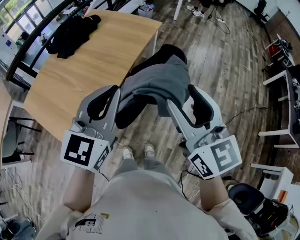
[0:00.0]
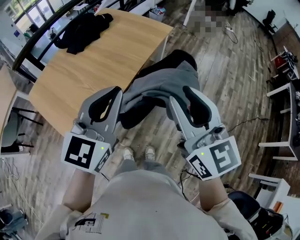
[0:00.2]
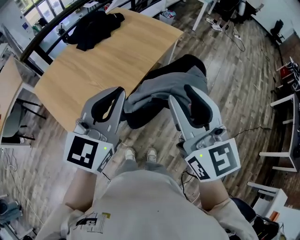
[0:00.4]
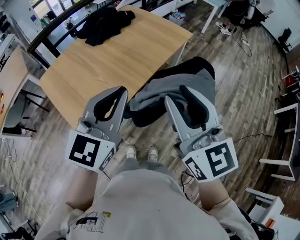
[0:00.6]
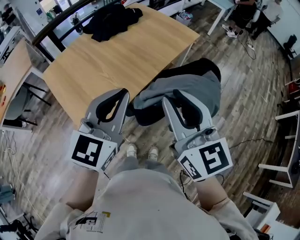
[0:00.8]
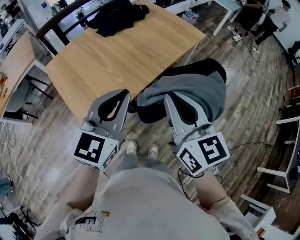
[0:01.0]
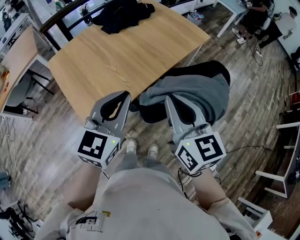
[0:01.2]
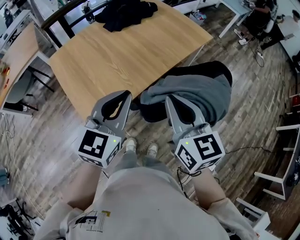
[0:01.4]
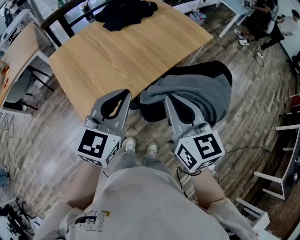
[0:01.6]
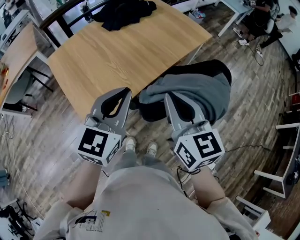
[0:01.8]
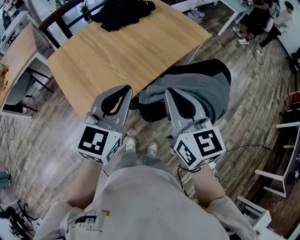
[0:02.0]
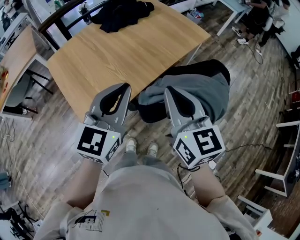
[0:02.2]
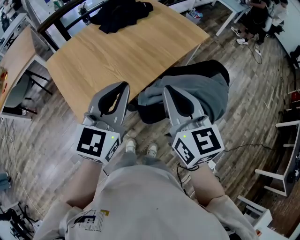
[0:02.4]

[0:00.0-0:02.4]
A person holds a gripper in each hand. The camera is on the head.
0:00.0 to 0:01.2: Both grippers move to the left, approximately 15 cm. The right gripper turns by about 20 degrees, and closes its fingers.
0:01.2 to 0:02.4: The grippers make only small movements.

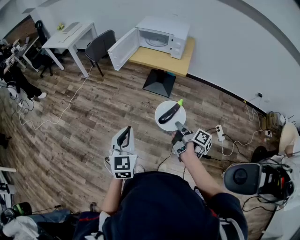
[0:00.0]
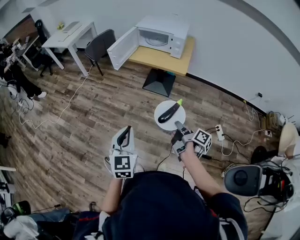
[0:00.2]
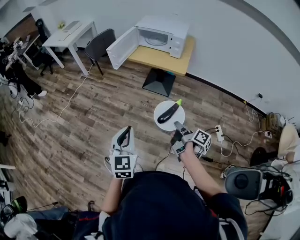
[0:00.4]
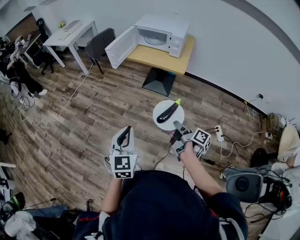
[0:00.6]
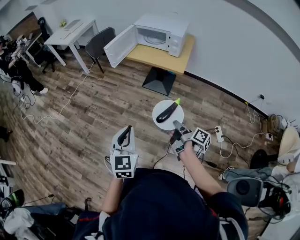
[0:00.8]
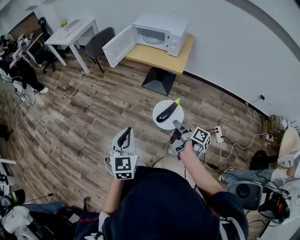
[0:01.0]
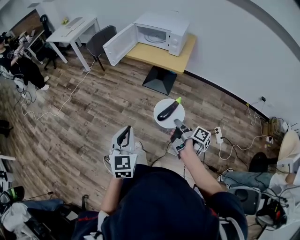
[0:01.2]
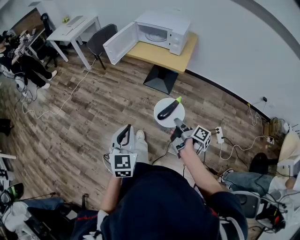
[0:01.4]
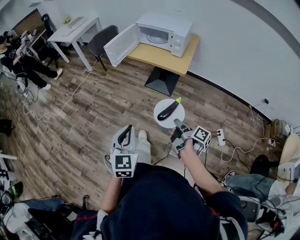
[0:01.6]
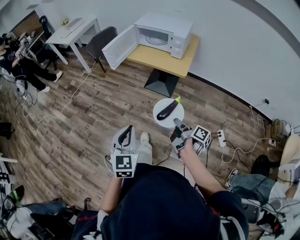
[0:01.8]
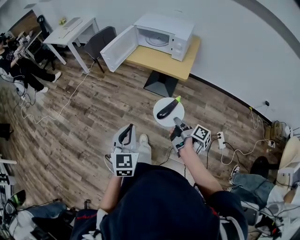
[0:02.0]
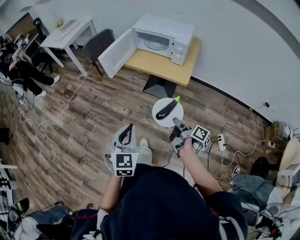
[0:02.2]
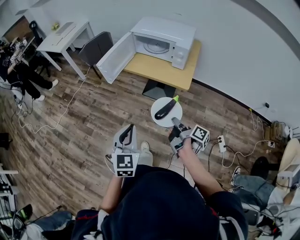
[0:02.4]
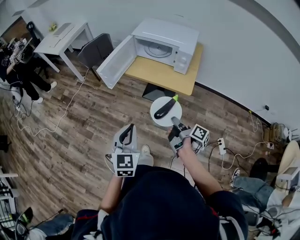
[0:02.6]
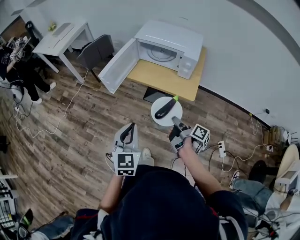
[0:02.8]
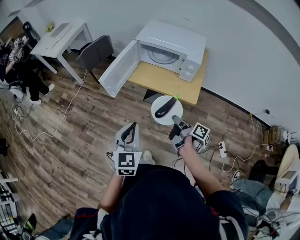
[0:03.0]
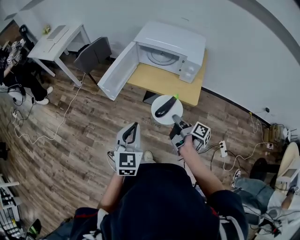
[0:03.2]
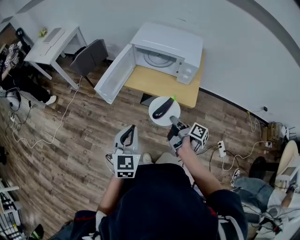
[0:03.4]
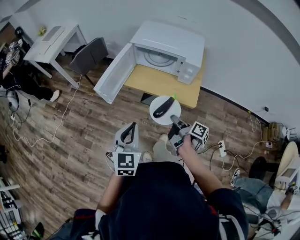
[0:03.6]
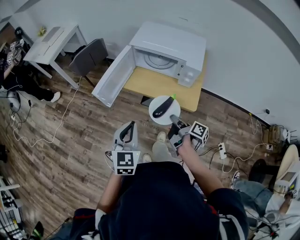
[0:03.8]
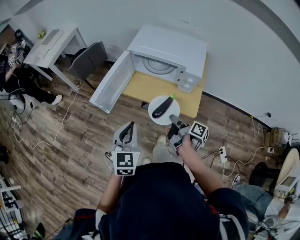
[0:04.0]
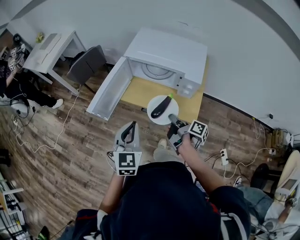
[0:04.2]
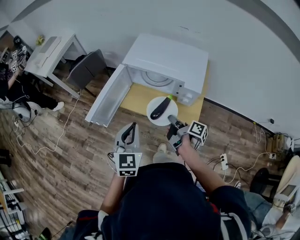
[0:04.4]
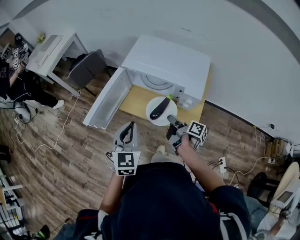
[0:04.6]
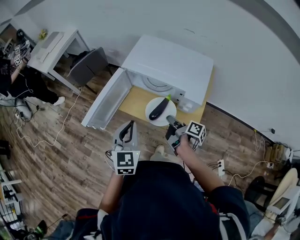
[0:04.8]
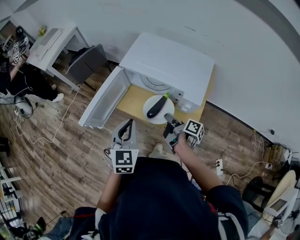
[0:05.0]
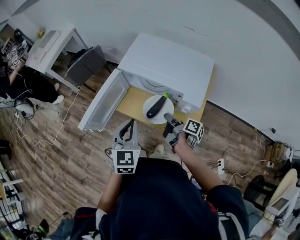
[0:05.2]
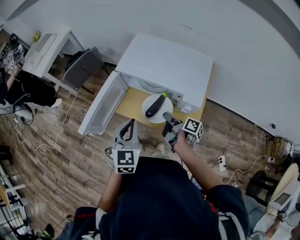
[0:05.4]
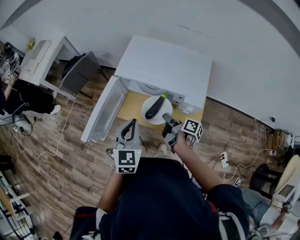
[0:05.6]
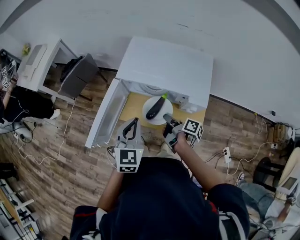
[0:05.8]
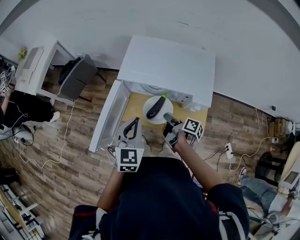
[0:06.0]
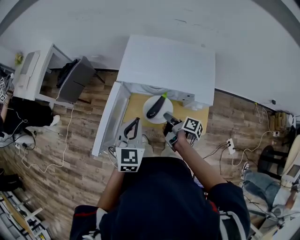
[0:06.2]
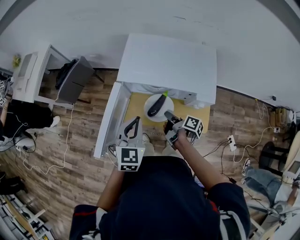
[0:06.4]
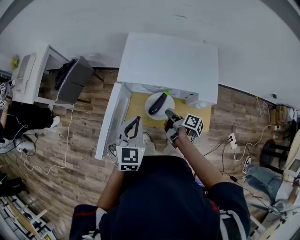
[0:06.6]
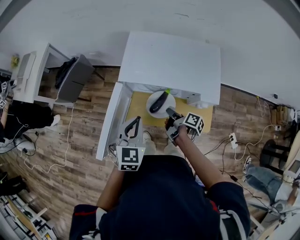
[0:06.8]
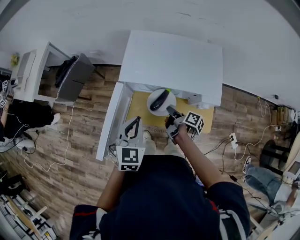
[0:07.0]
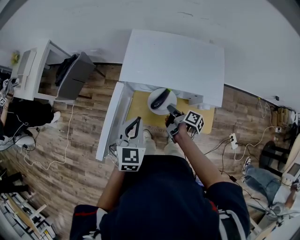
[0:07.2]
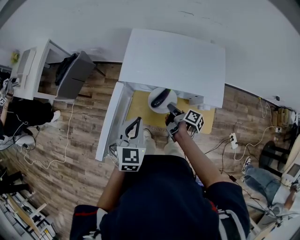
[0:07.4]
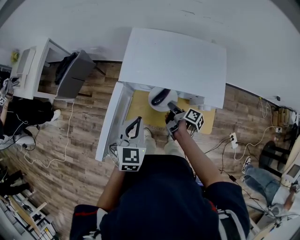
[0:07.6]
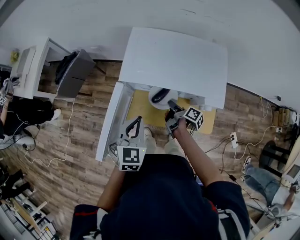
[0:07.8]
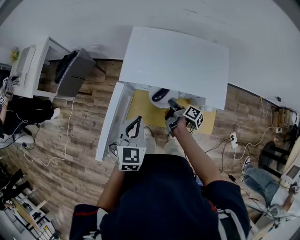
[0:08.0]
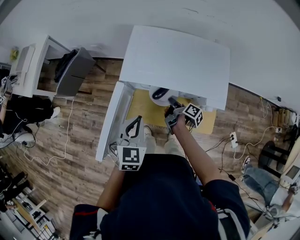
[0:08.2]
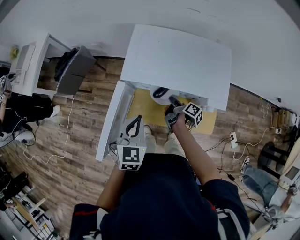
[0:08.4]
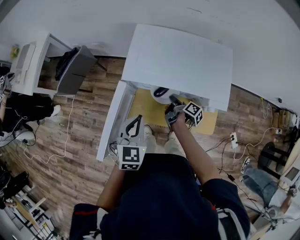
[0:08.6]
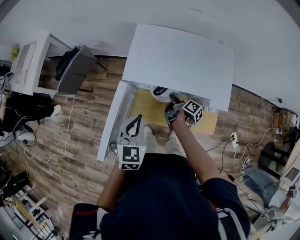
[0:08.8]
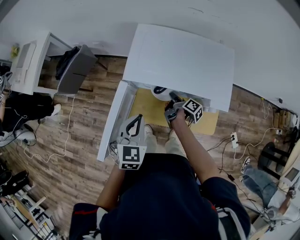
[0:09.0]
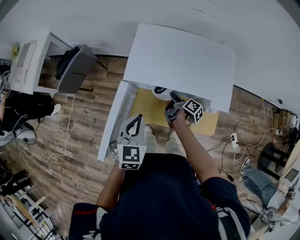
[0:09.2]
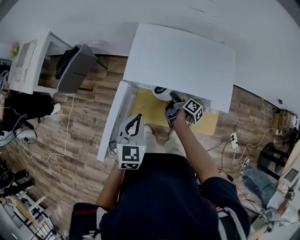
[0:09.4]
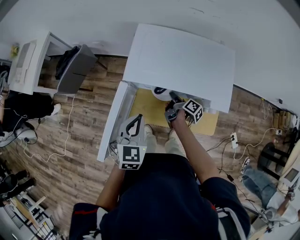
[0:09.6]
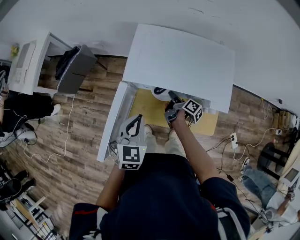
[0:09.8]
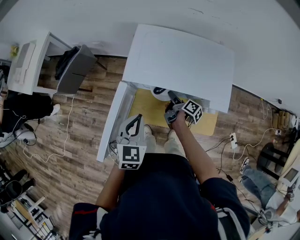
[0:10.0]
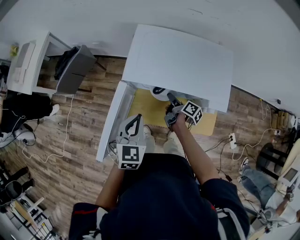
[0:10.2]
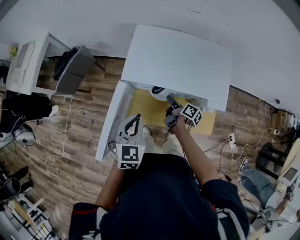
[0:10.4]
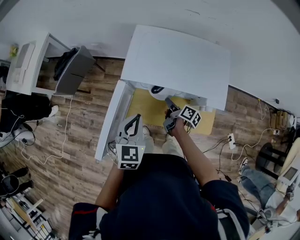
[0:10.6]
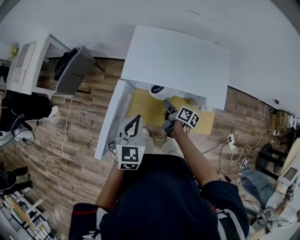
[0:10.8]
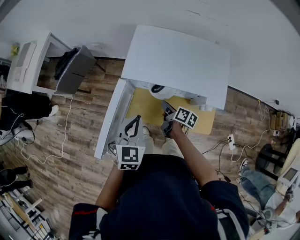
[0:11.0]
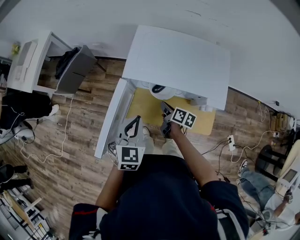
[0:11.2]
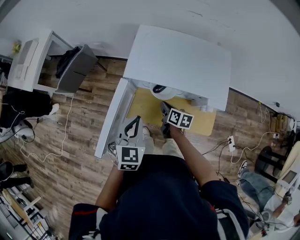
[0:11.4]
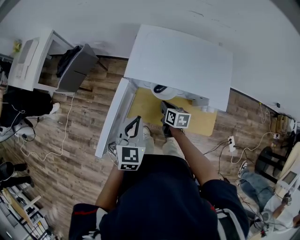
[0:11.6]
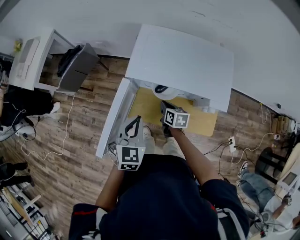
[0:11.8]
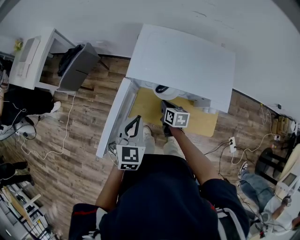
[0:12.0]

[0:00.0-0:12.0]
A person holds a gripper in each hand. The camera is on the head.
0:00.0 to 0:01.6: The left gripper ends up roughly 10 cm from where it was.
0:01.6 to 0:03.0: The left gripper ends up approximately 35 cm from where it was.
0:03.0 to 0:04.4: The left gripper shifts by about 20 cm.
0:04.4 to 0:06.0: The left gripper changes place by some 15 cm.
0:06.0 to 0:07.6: The left gripper shifts by roughly 5 cm.

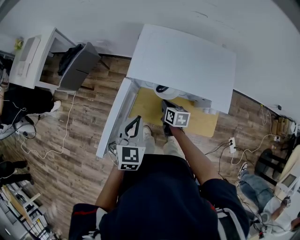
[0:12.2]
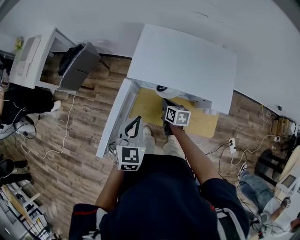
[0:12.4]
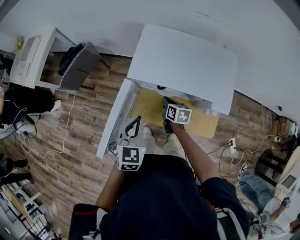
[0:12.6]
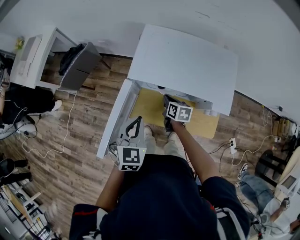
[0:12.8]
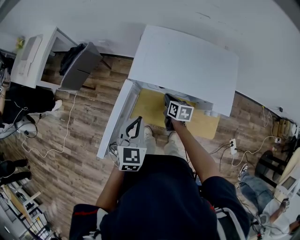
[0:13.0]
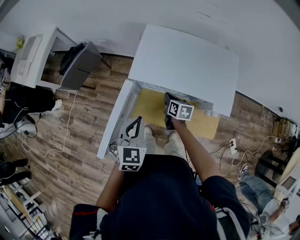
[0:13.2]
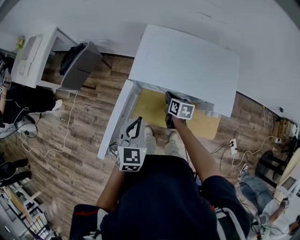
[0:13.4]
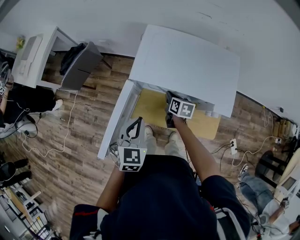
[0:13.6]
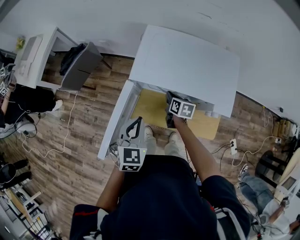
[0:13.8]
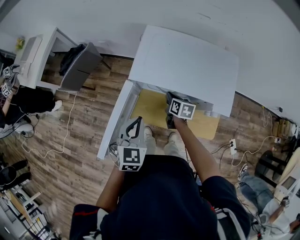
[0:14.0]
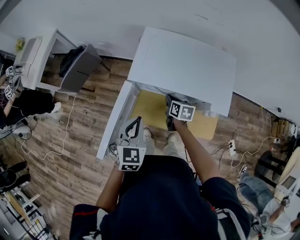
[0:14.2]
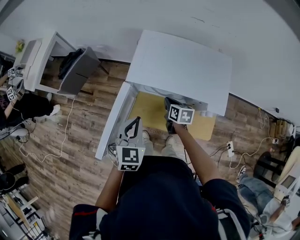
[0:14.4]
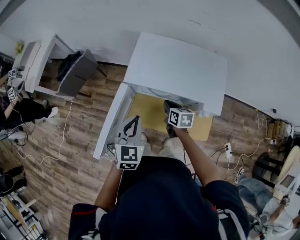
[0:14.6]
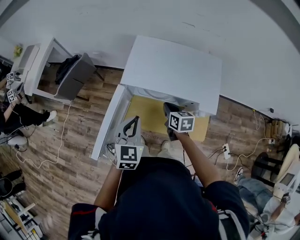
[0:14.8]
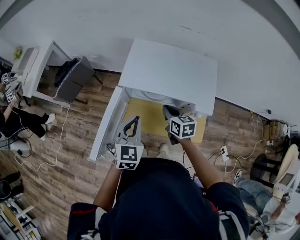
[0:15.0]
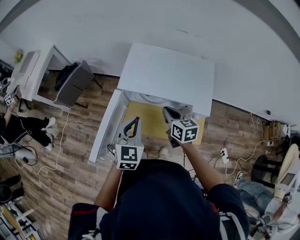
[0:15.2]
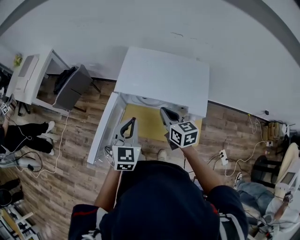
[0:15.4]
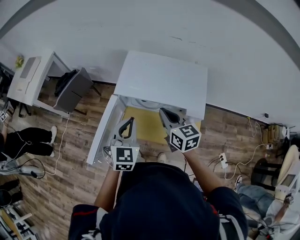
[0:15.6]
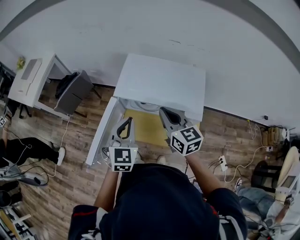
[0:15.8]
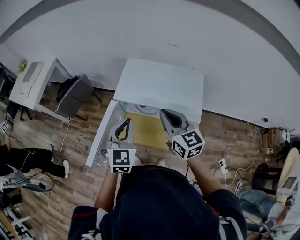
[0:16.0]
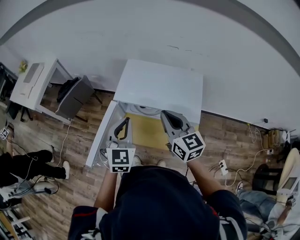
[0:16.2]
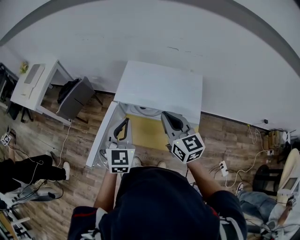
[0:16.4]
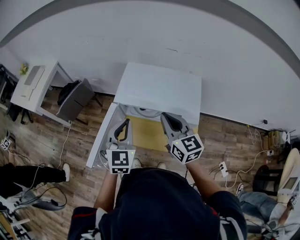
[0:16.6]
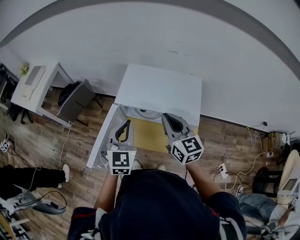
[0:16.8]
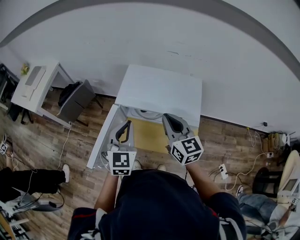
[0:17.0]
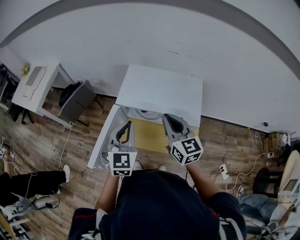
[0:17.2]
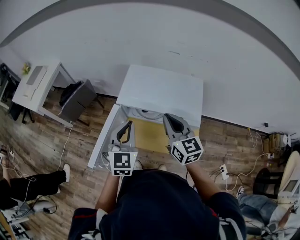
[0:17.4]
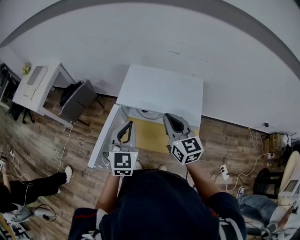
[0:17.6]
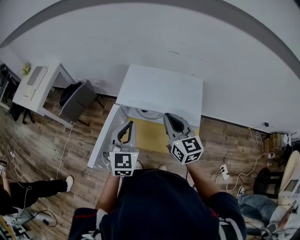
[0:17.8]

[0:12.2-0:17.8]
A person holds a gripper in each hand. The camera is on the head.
0:13.6 to 0:15.0: The left gripper moves some 5 cm.
0:15.0 to 0:16.4: The left gripper moves upward, approximately 10 cm.

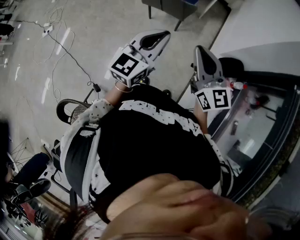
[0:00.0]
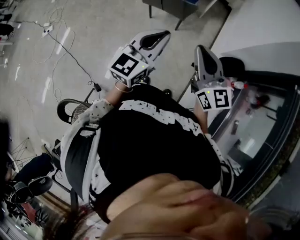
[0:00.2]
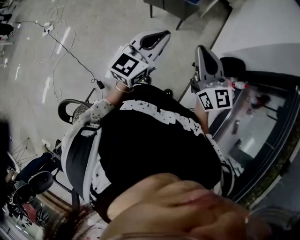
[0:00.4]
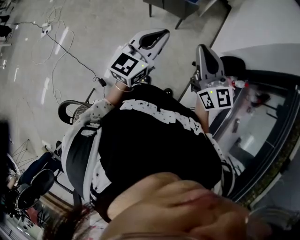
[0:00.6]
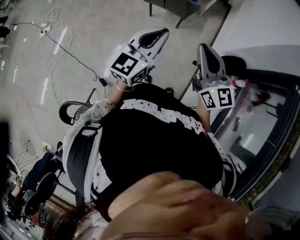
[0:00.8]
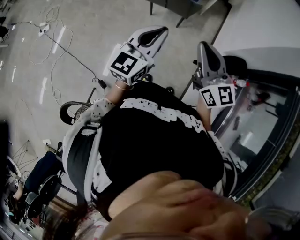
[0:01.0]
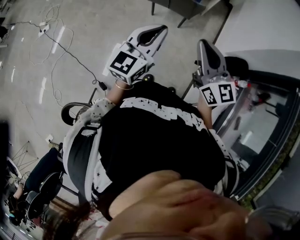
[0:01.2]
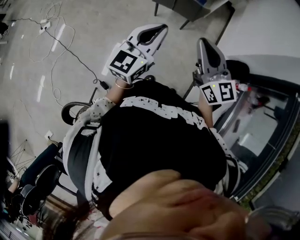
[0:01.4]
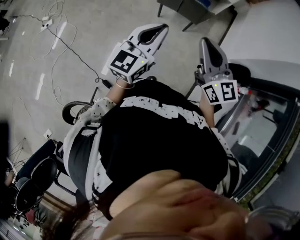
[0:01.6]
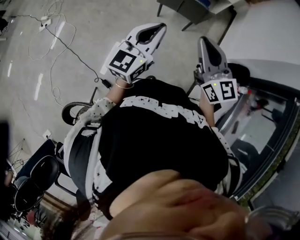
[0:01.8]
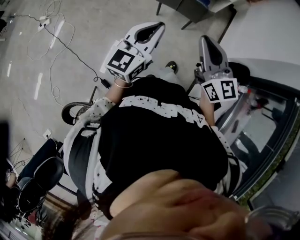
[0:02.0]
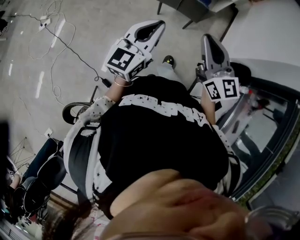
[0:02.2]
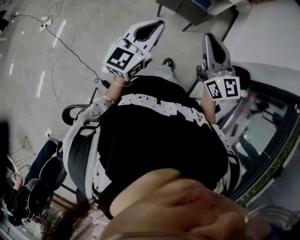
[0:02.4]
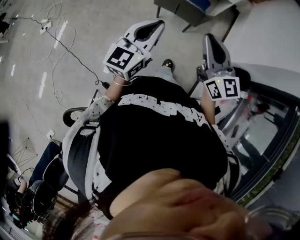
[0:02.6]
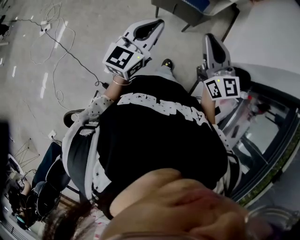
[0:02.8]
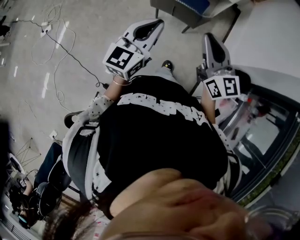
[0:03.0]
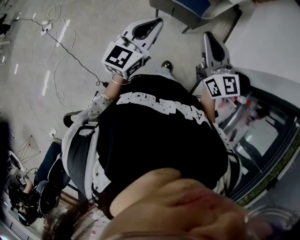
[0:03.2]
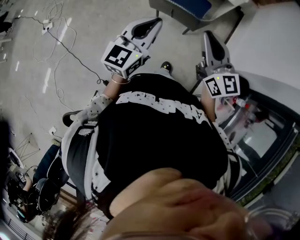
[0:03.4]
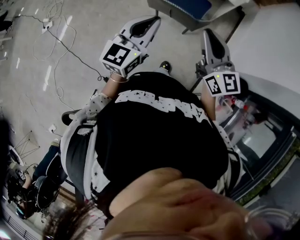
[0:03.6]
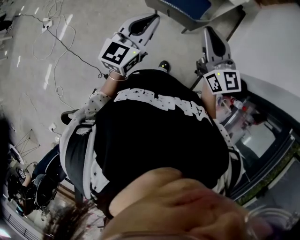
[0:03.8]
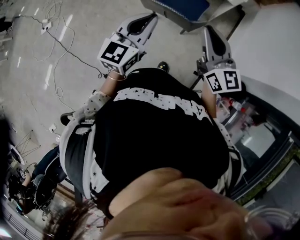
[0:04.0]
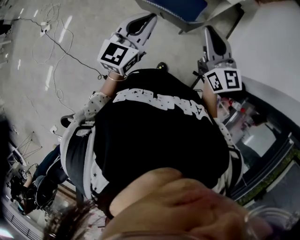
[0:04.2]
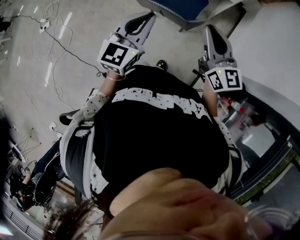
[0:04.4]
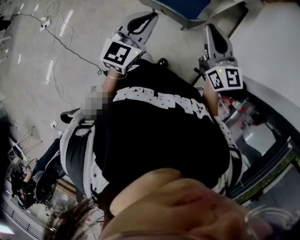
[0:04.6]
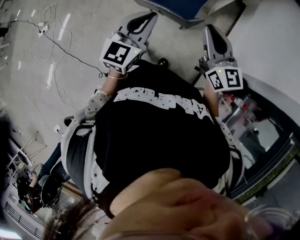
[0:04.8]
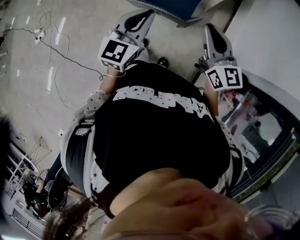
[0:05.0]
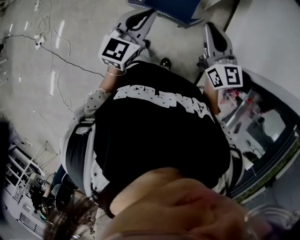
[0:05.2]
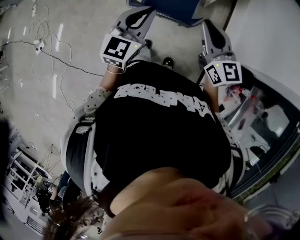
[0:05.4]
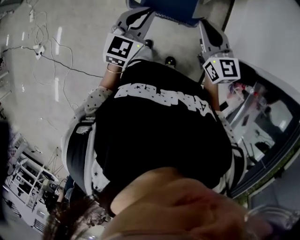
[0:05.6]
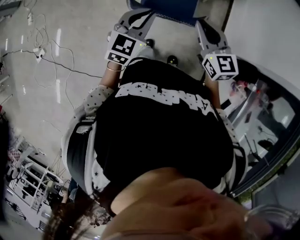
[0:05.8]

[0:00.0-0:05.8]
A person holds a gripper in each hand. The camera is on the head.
0:00.0 to 0:01.4: The two grippers go roughly 10 cm to the left.
0:01.4 to 0:02.8: The two grippers go about 10 cm forward.
0:02.8 to 0:04.4: Both grippers travel together forward and to the right, approximately 15 cm.
0:04.4 to 0:05.8: The right gripper moves downward, forward and to the left, about 10 cm. Meanwhile the left gripper is displaced forward and downward by some 15 cm, and changes its angle by some 30 degrees.
